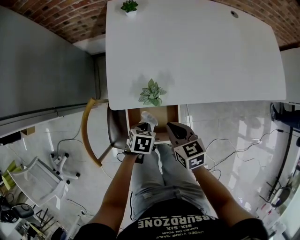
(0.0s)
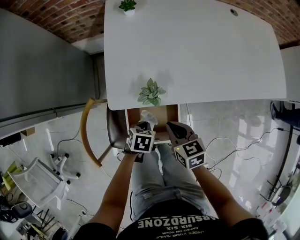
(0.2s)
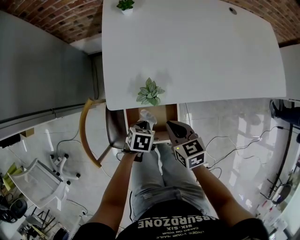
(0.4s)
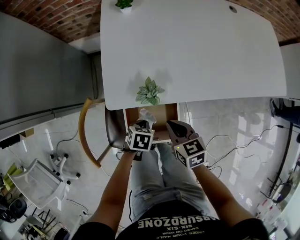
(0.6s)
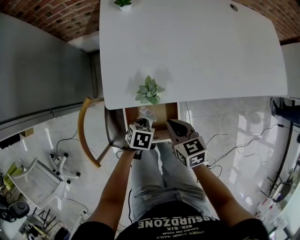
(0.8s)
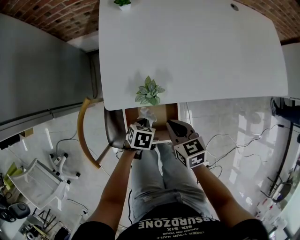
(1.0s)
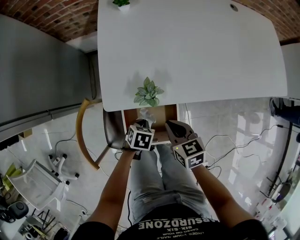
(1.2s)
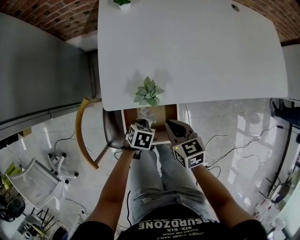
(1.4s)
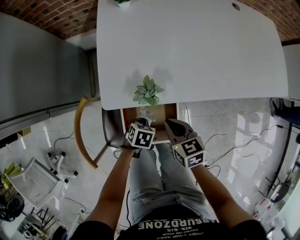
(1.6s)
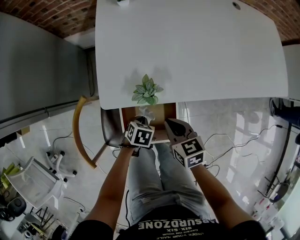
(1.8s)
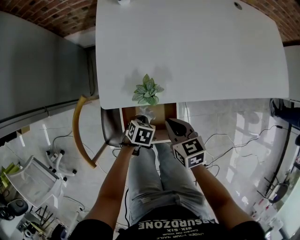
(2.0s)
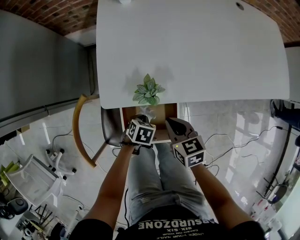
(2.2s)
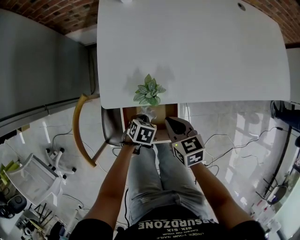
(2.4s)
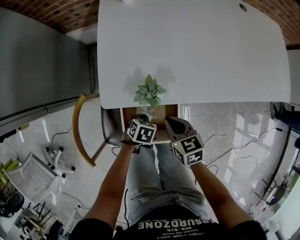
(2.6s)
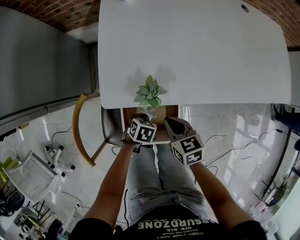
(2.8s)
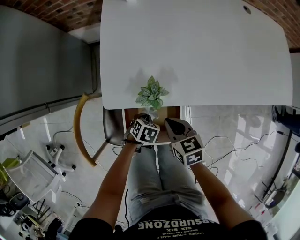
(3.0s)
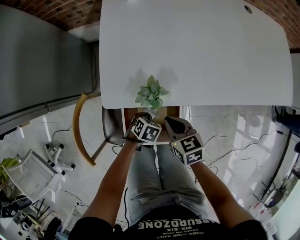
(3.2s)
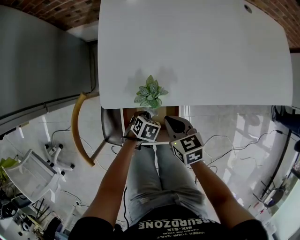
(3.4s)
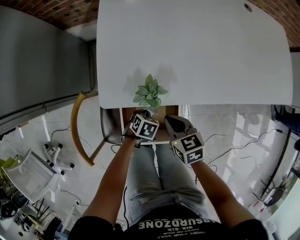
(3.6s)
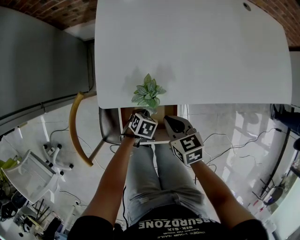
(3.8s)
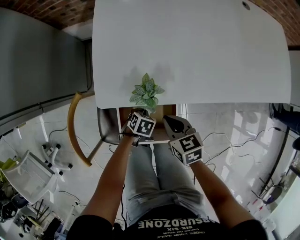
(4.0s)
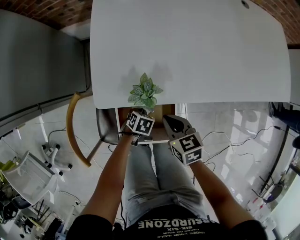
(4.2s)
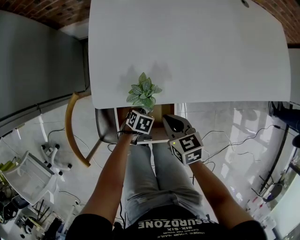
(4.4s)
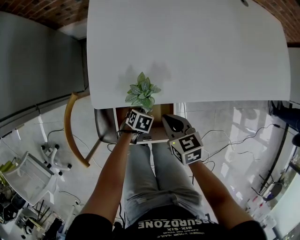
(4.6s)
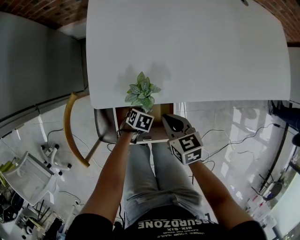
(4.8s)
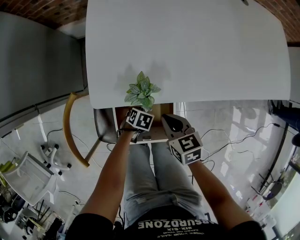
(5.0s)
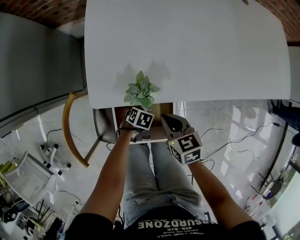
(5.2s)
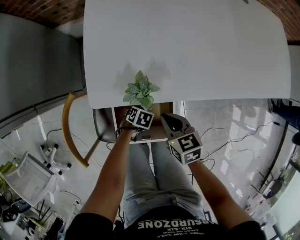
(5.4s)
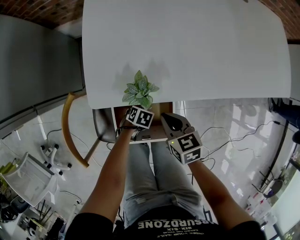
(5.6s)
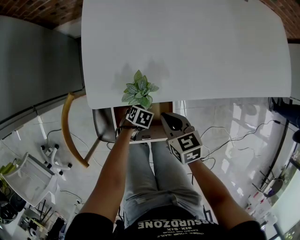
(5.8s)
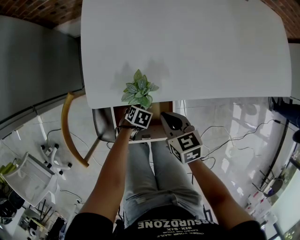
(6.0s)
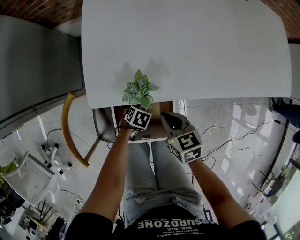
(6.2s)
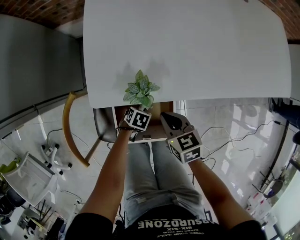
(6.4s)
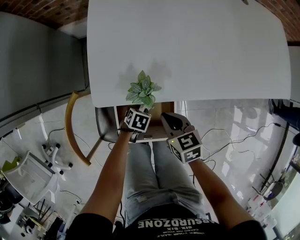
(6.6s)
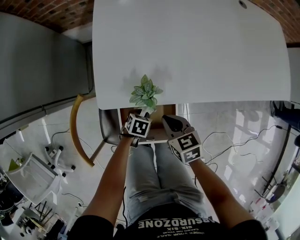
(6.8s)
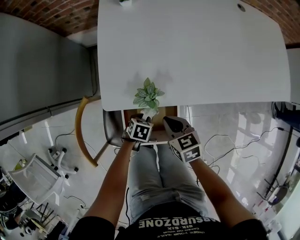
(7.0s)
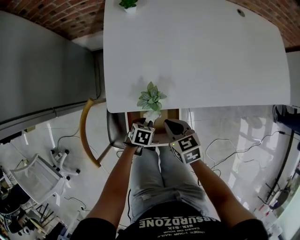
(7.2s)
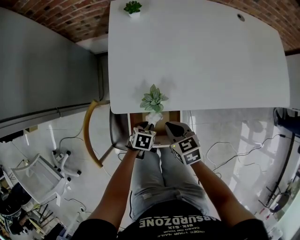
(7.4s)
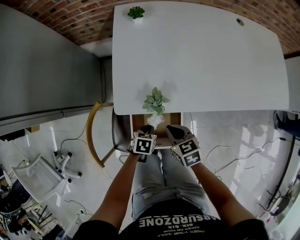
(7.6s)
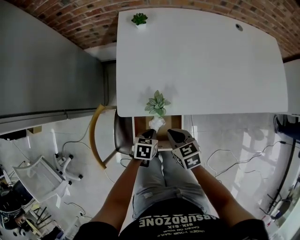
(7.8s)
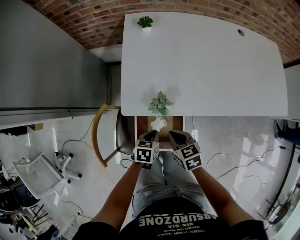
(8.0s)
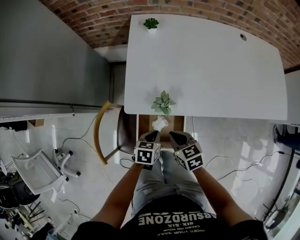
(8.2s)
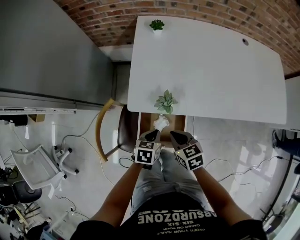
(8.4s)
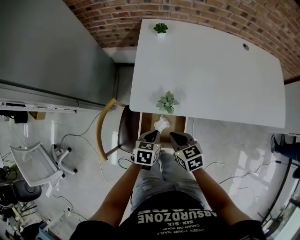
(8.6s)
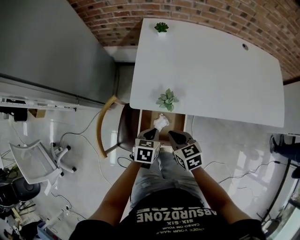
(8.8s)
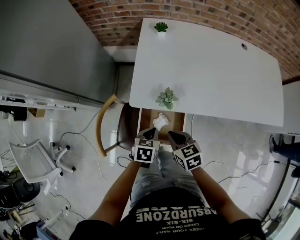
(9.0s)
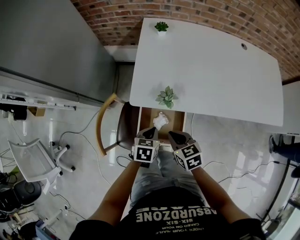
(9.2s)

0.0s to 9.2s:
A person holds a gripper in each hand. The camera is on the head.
0.0s to 1.6s: The left gripper heads downward, covering roughly 5 cm.
1.6s to 3.0s: The grippers move only a little.
3.0s to 4.6s: The left gripper shifts roughly 5 cm downward.
4.6s to 6.2s: The grippers move only a little.
6.2s to 7.6s: The right gripper is displaced upward by roughly 5 cm. Meanwhile the left gripper moves upward, approximately 15 cm, and turns by some 20 degrees.
7.6s to 9.2s: The left gripper is displaced upward by roughly 15 cm. Meanwhile the right gripper shifts some 10 cm upward and backward.

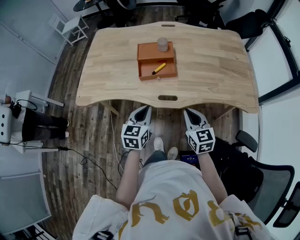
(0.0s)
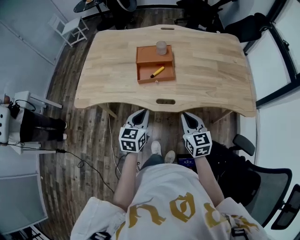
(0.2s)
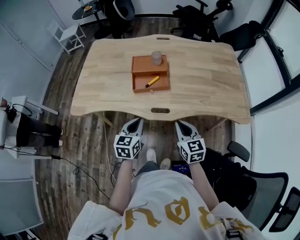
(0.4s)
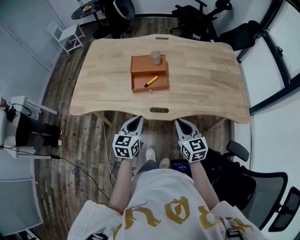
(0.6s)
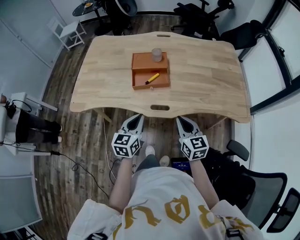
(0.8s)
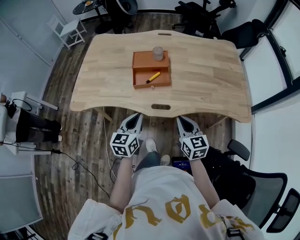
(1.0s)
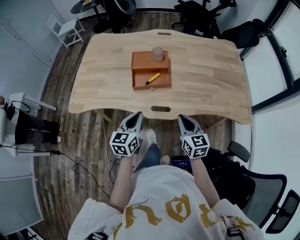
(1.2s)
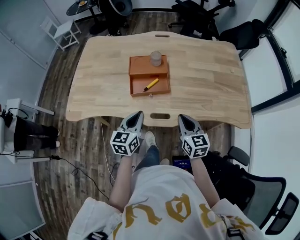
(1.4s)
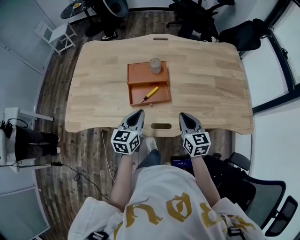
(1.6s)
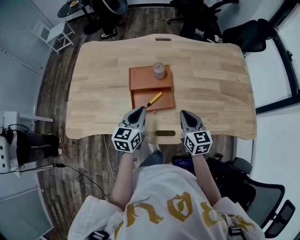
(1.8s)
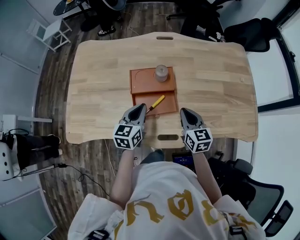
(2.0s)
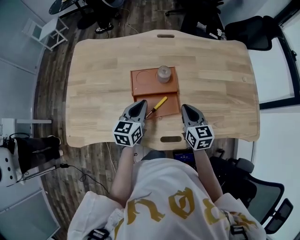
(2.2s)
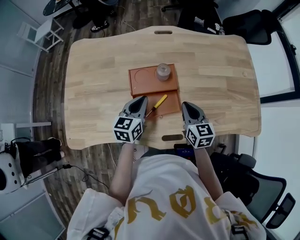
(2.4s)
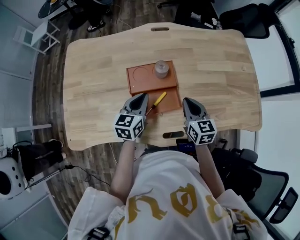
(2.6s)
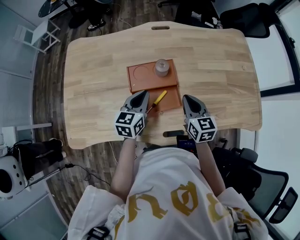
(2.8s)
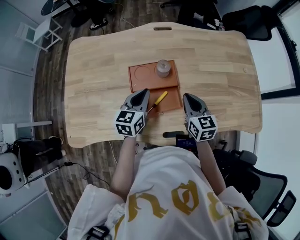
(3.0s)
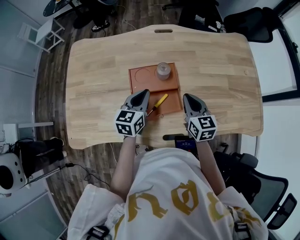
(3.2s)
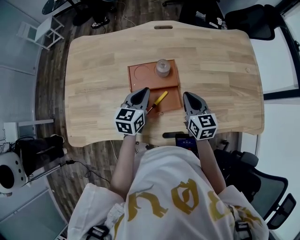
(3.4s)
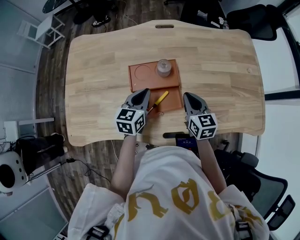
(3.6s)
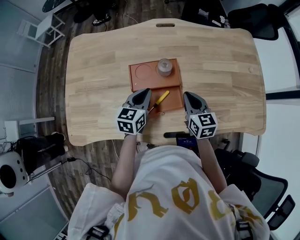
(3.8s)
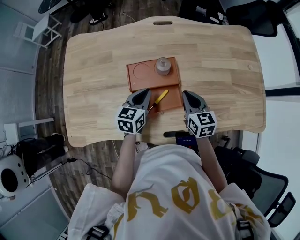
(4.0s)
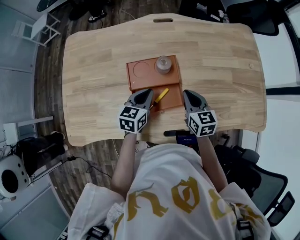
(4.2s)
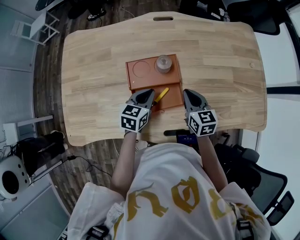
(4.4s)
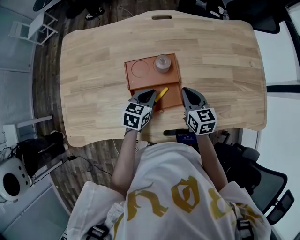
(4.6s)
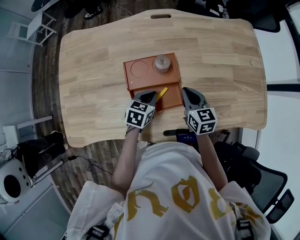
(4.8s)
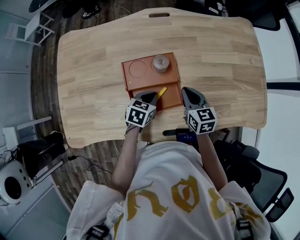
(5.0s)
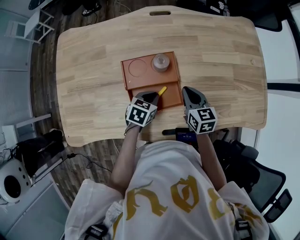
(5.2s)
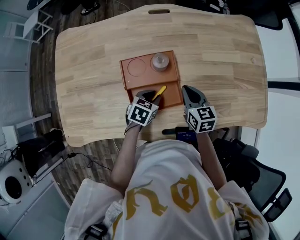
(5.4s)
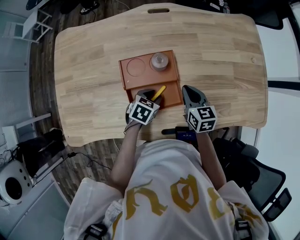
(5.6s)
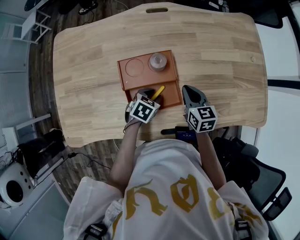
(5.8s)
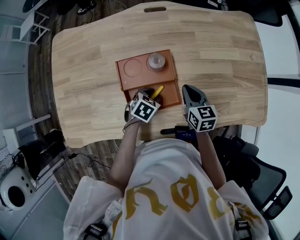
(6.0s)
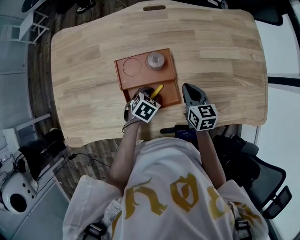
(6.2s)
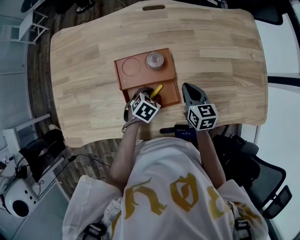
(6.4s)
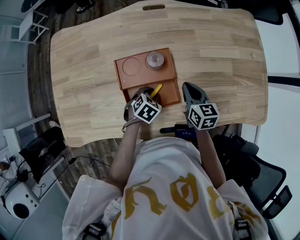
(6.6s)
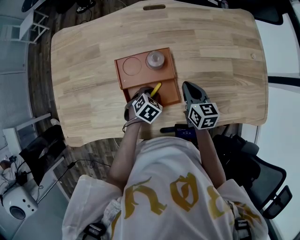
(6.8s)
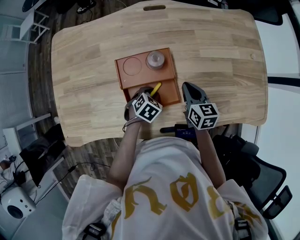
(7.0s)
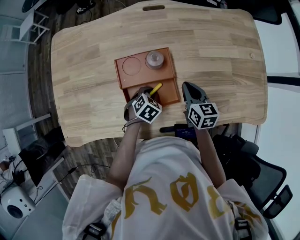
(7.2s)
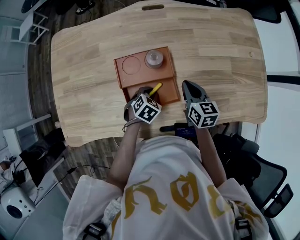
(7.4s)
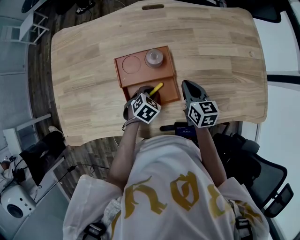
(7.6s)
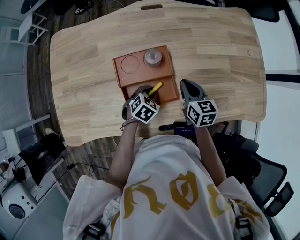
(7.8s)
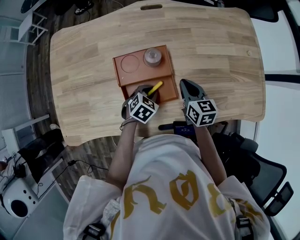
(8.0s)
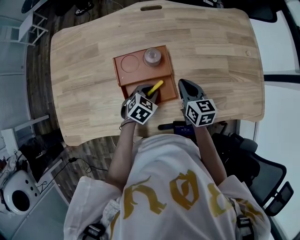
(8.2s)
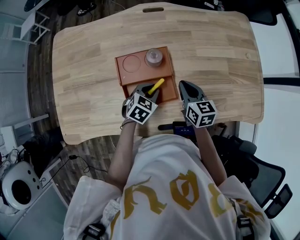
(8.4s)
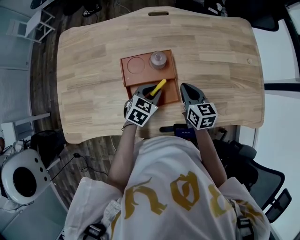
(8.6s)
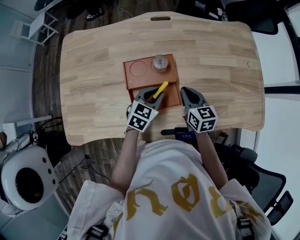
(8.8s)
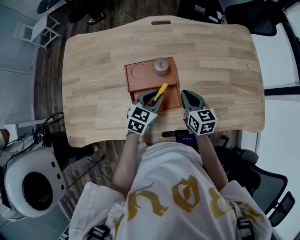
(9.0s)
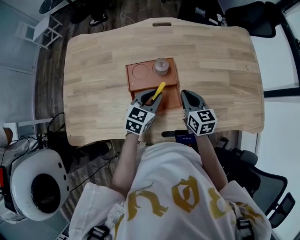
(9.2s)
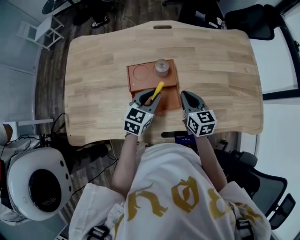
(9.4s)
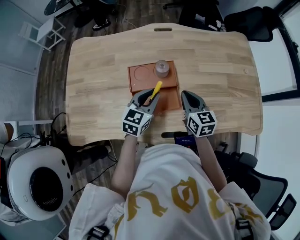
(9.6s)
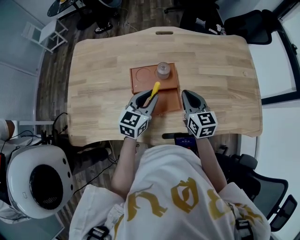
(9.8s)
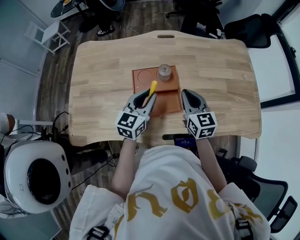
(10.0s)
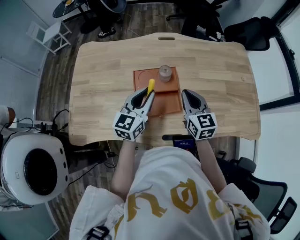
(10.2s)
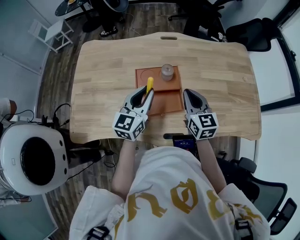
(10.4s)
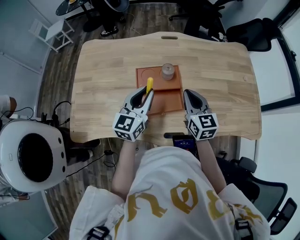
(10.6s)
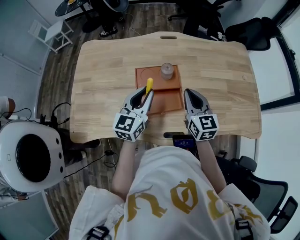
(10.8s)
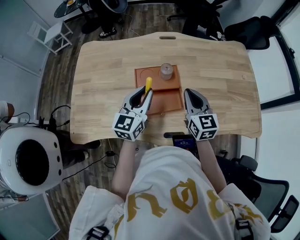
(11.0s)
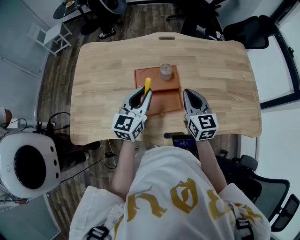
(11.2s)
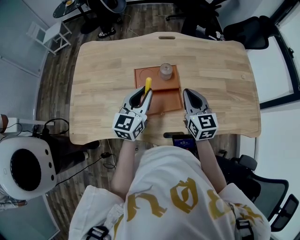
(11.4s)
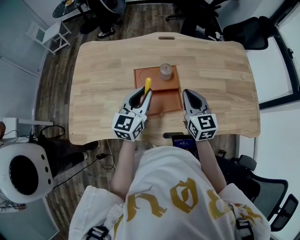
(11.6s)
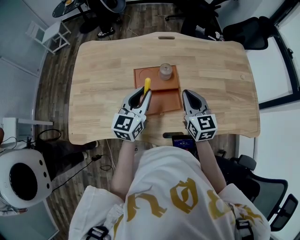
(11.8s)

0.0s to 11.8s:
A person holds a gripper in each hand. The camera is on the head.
0.0s to 1.4s: Both grippers move forward, some 10 cm.
1.4s to 3.0s: The grippers both shift forward by approximately 25 cm.
3.0s to 4.4s: The left gripper goes some 5 cm downward, while the right gripper shifts by about 5 cm.
4.4s to 6.0s: The left gripper goes some 10 cm downward, rotates approximately 30 degrees, and opens.
6.0s to 7.4s: There are only small adjustments of the grippers.
7.4s to 8.8s: The left gripper travels upward by approximately 10 cm, and turns by approximately 30 degrees.
8.8s to 10.4s: The left gripper heads upward and to the left, covering roughly 15 cm, and turns by about 30 degrees, while the right gripper shifts about 10 cm upward.
10.4s to 11.8s: Neither gripper changes place.

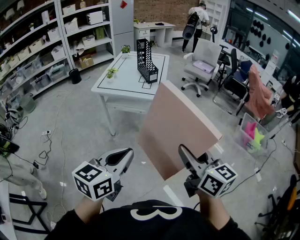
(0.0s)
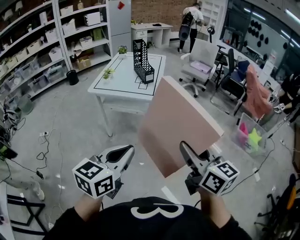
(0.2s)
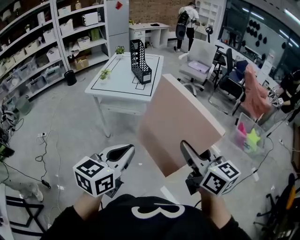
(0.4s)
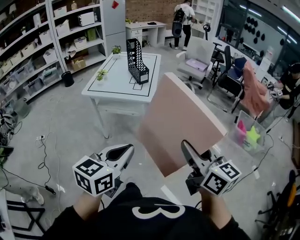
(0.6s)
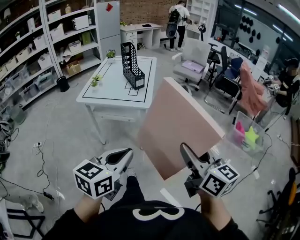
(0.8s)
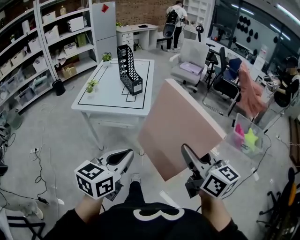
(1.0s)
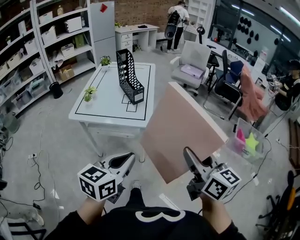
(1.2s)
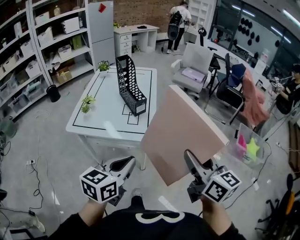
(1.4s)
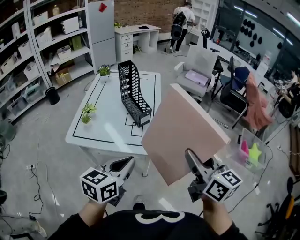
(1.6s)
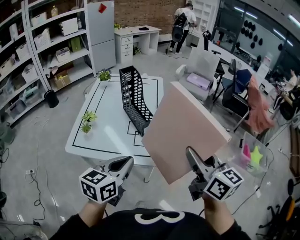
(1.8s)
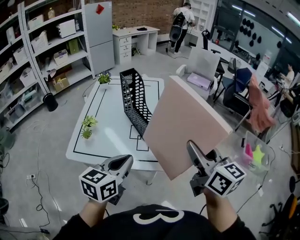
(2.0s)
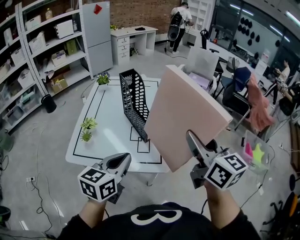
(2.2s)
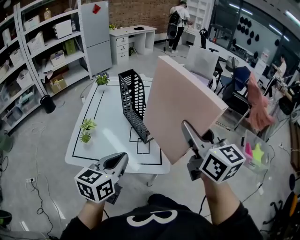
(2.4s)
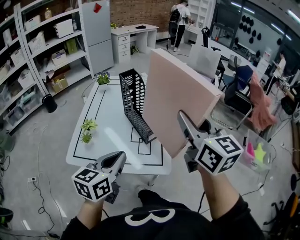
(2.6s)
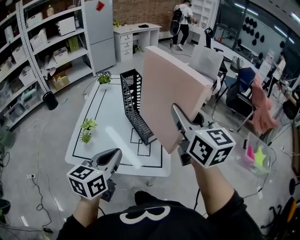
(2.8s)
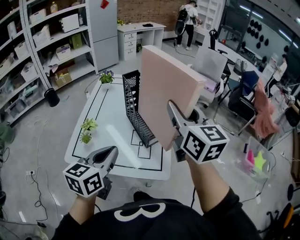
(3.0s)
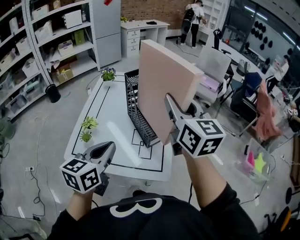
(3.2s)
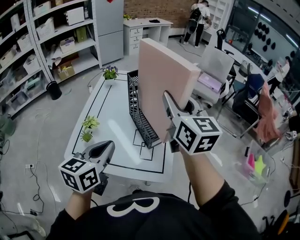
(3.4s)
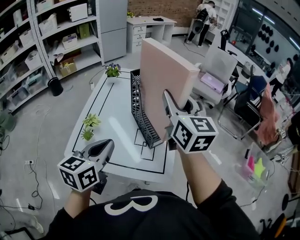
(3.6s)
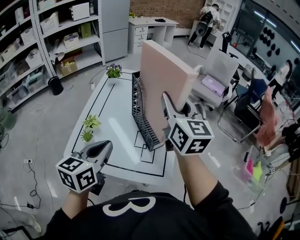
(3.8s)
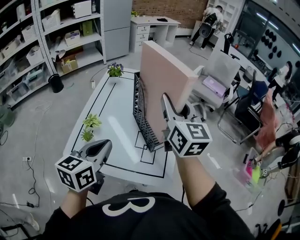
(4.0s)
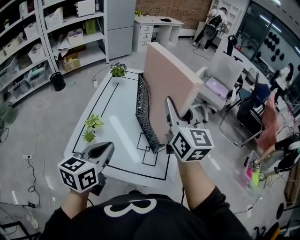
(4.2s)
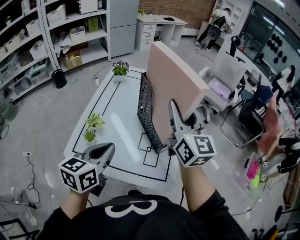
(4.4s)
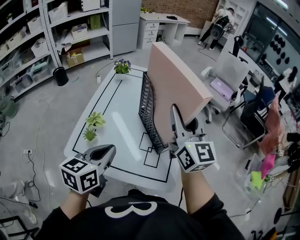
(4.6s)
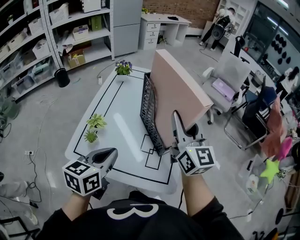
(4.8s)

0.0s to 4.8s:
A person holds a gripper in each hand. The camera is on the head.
0.0s to 1.6s: The pair of grippers is taken forward, some 40 cm.
1.6s to 3.2s: The grippers both shift forward and to the left by about 30 cm.
3.2s to 4.8s: The left gripper shifts roughly 5 cm downward. Meanwhile the right gripper goes roughly 10 cm downward and forward.
